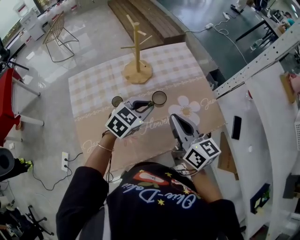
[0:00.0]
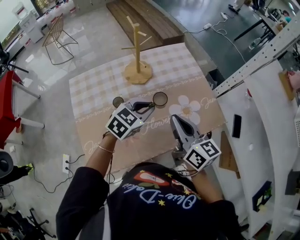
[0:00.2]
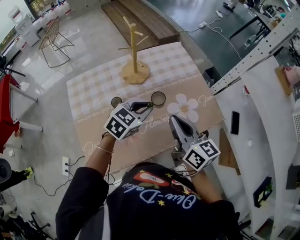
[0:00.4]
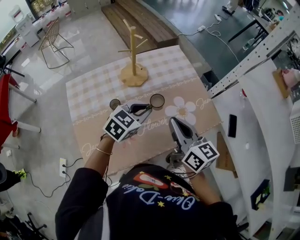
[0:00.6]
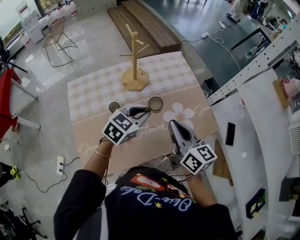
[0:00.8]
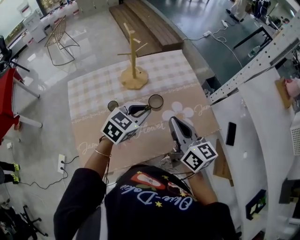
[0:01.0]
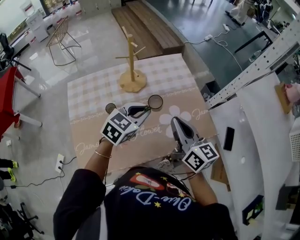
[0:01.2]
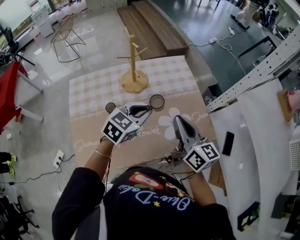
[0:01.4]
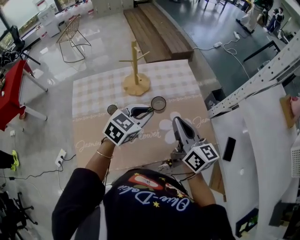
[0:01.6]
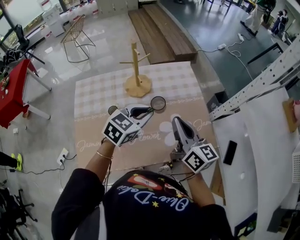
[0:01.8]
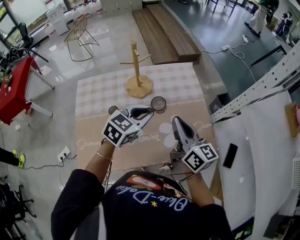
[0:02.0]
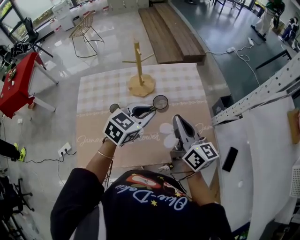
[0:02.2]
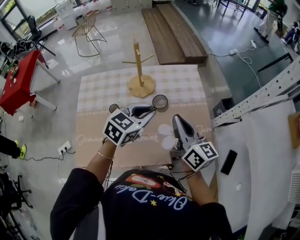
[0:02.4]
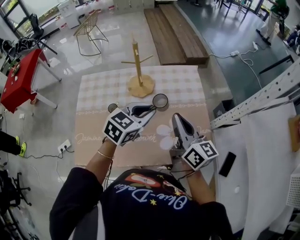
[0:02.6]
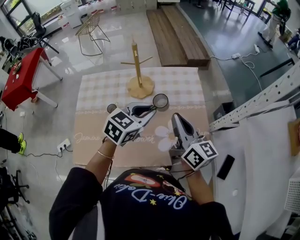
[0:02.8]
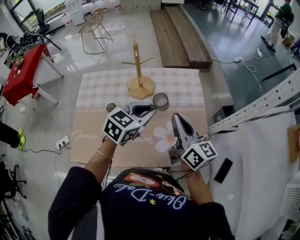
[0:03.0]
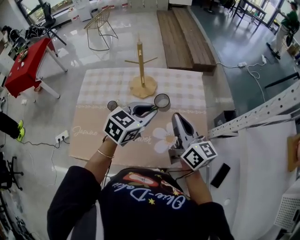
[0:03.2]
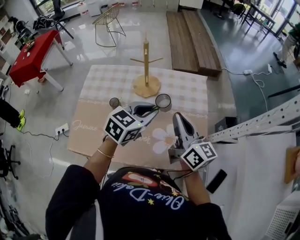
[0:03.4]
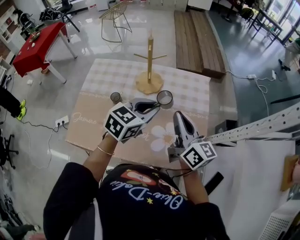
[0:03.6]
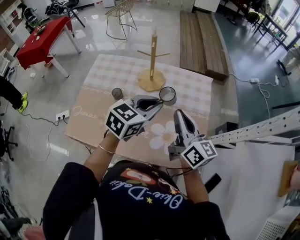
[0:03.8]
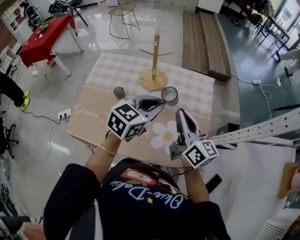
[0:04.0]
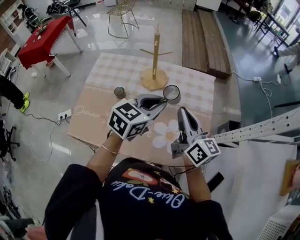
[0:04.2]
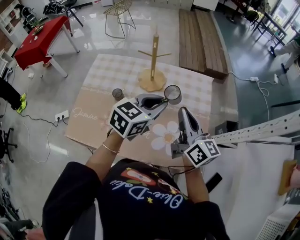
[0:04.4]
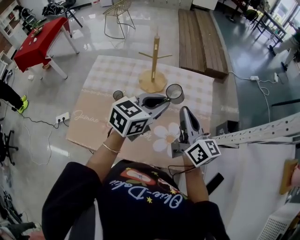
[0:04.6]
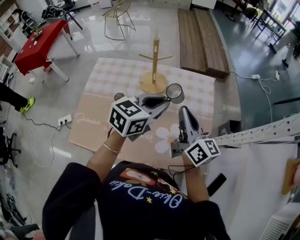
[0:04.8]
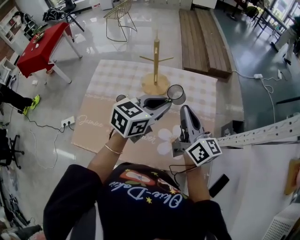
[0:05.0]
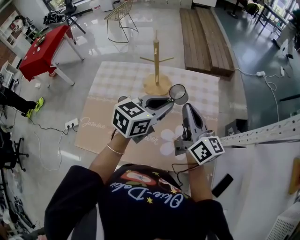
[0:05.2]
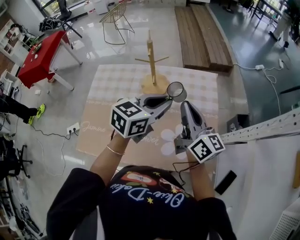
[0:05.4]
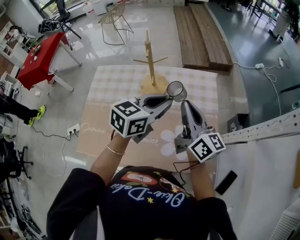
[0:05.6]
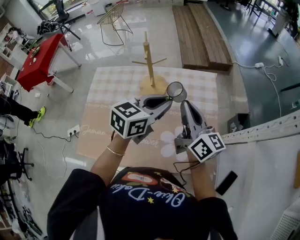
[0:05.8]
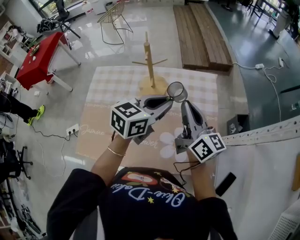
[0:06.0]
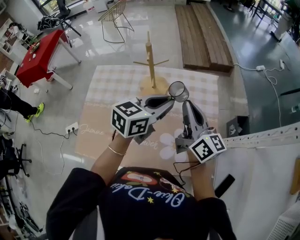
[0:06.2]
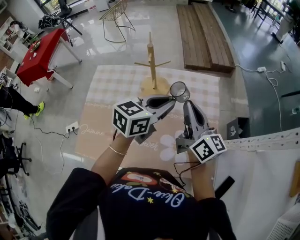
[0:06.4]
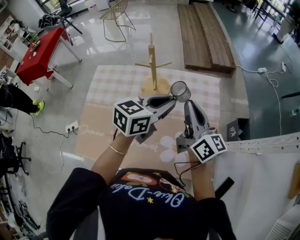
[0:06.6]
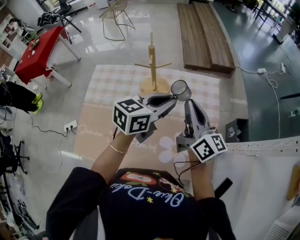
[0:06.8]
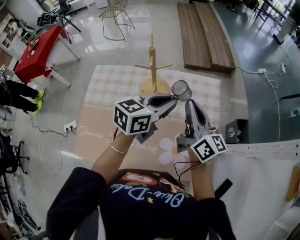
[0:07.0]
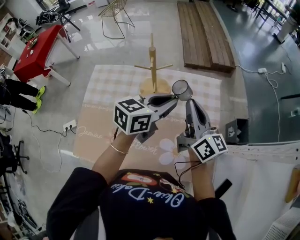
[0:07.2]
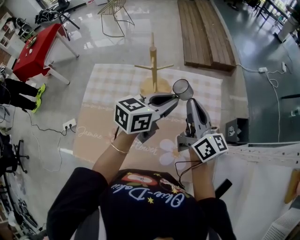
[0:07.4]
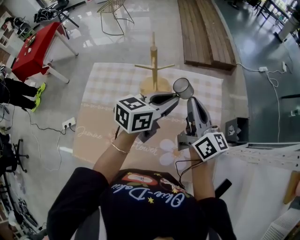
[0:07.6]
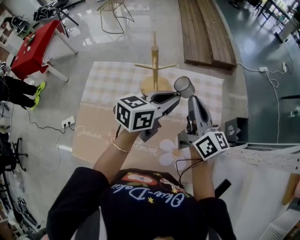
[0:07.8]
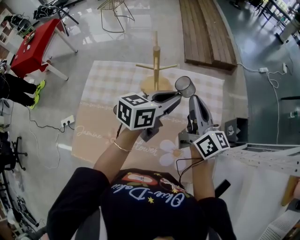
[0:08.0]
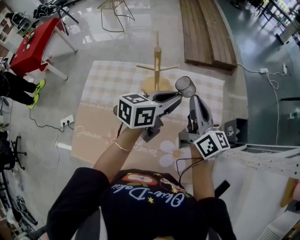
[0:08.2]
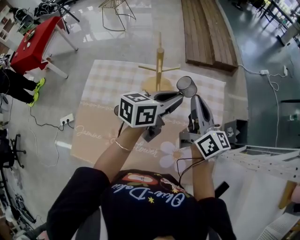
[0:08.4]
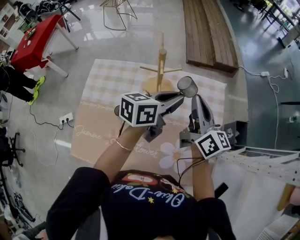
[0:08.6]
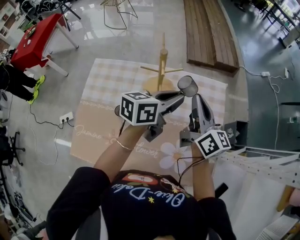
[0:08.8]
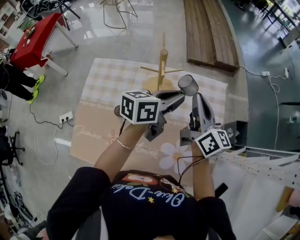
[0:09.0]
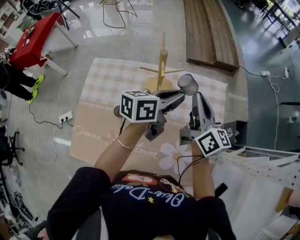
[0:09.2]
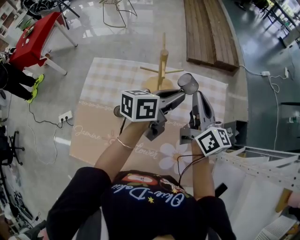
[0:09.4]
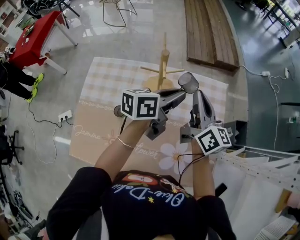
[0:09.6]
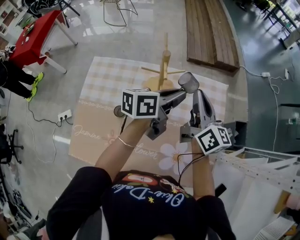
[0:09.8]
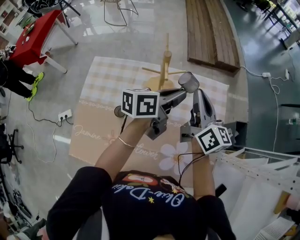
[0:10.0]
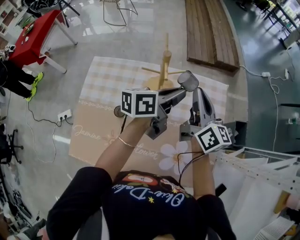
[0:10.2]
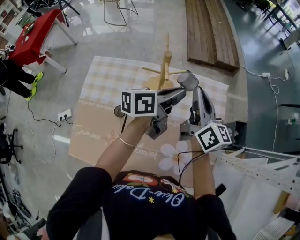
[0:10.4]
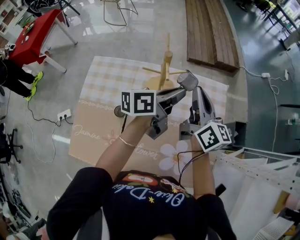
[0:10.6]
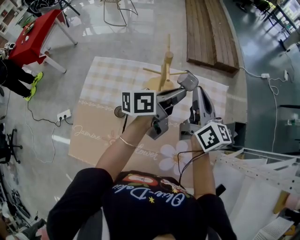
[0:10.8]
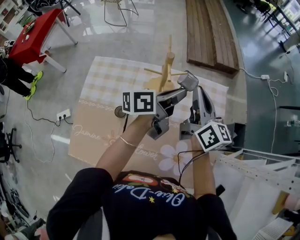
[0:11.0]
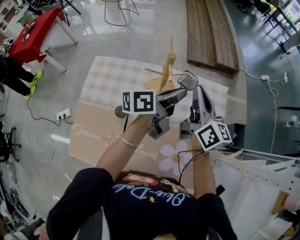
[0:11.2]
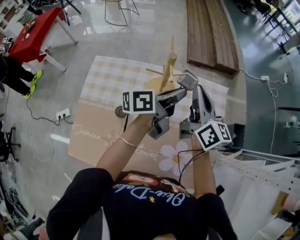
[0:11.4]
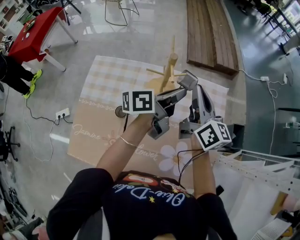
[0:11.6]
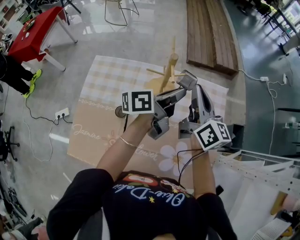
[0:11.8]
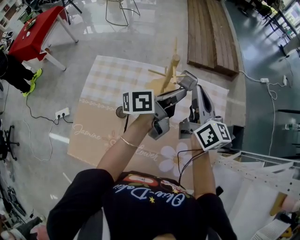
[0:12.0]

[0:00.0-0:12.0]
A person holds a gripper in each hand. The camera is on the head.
0:00.0 to 0:01.6: The left gripper goes roughly 5 cm upward, while the right gripper goes roughly 5 cm to the right and forward.
0:01.6 to 0:03.0: The right gripper goes about 5 cm forward. The left gripper changes place by approximately 5 cm.
0:03.0 to 0:04.4: The grippers make only small movements.
0:04.4 to 0:06.0: The right gripper heads forward, covering roughly 5 cm.
0:06.0 to 0:07.6: The two grippers go roughly 5 cm forward.
0:07.6 to 0:09.0: The grippers make only small movements.
0:09.0 to 0:10.4: The grippers make only small movements.
0:10.4 to 0:12.0: There are only small adjustments of the grippers.

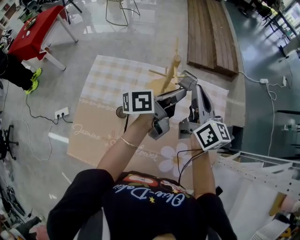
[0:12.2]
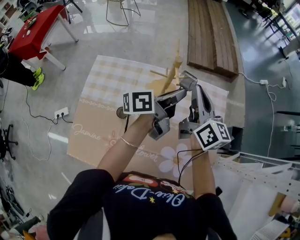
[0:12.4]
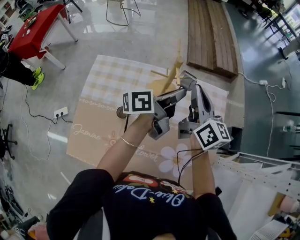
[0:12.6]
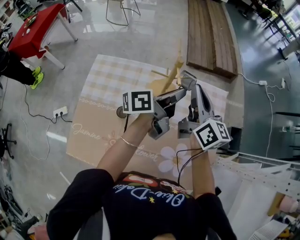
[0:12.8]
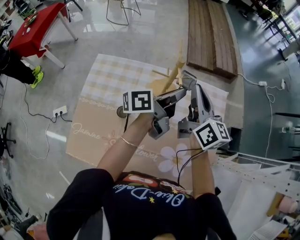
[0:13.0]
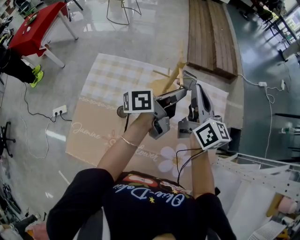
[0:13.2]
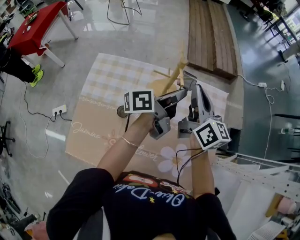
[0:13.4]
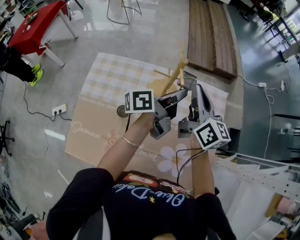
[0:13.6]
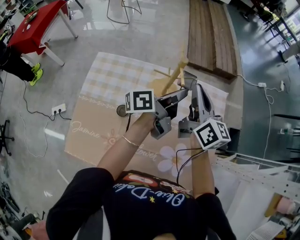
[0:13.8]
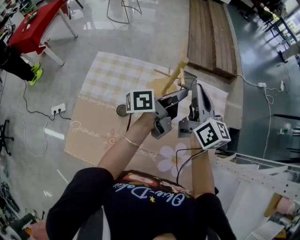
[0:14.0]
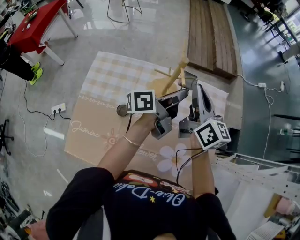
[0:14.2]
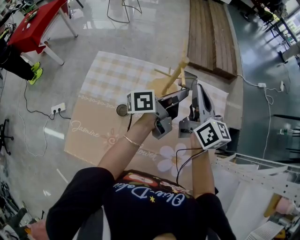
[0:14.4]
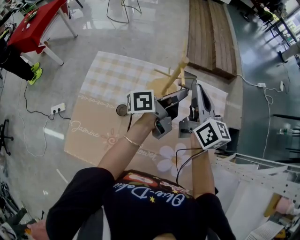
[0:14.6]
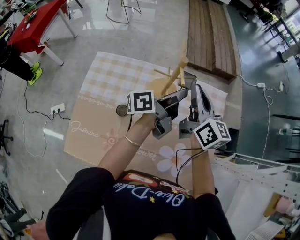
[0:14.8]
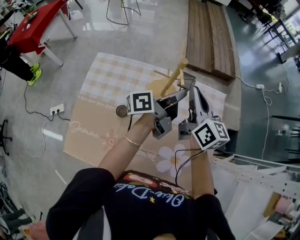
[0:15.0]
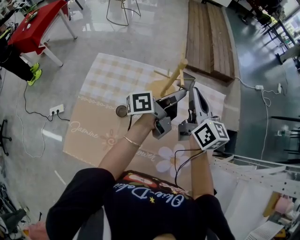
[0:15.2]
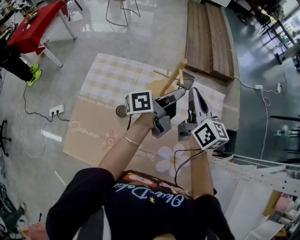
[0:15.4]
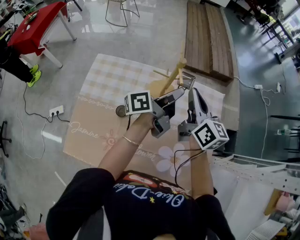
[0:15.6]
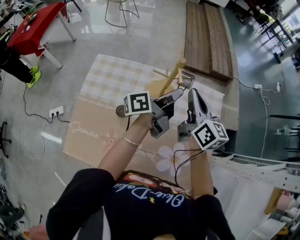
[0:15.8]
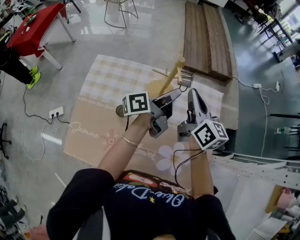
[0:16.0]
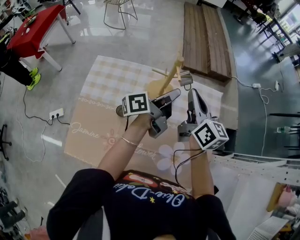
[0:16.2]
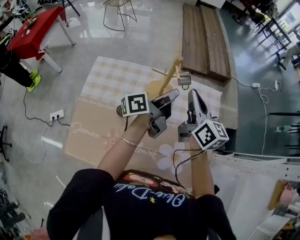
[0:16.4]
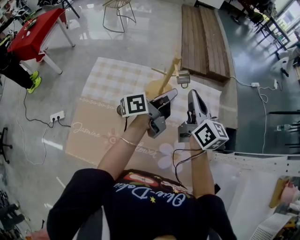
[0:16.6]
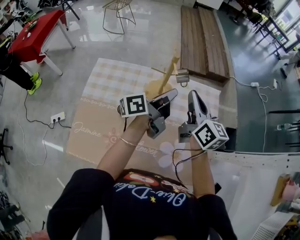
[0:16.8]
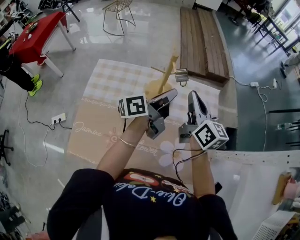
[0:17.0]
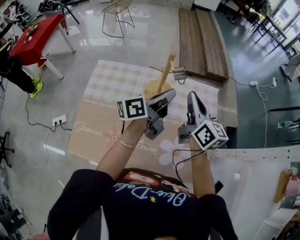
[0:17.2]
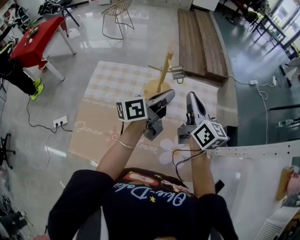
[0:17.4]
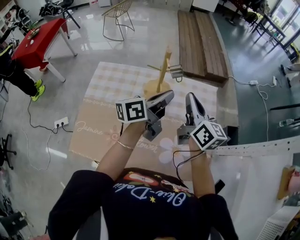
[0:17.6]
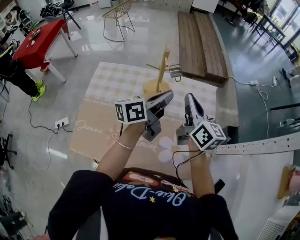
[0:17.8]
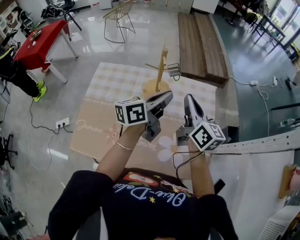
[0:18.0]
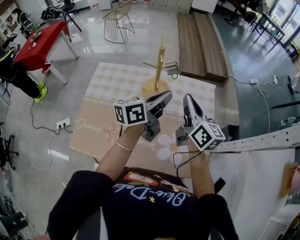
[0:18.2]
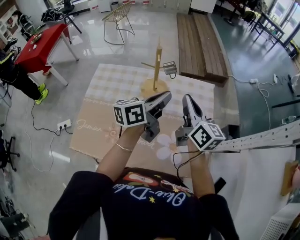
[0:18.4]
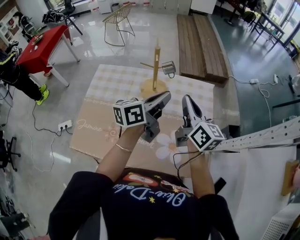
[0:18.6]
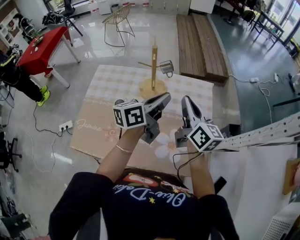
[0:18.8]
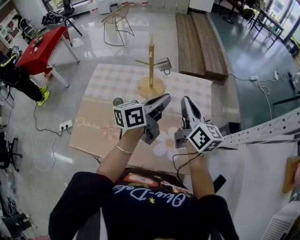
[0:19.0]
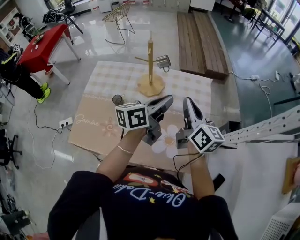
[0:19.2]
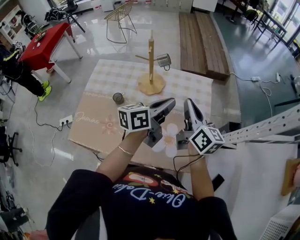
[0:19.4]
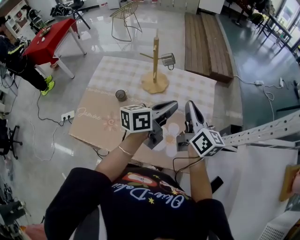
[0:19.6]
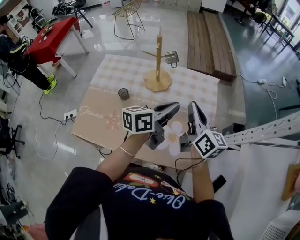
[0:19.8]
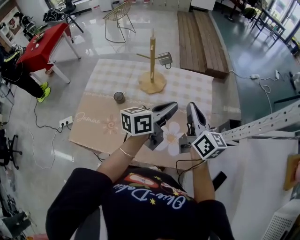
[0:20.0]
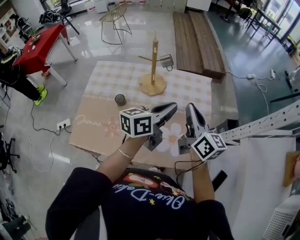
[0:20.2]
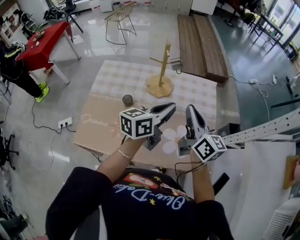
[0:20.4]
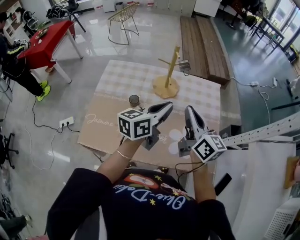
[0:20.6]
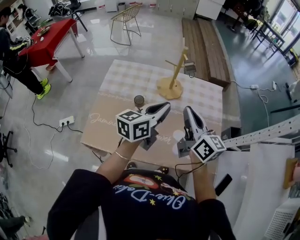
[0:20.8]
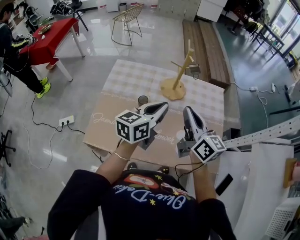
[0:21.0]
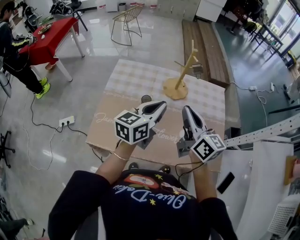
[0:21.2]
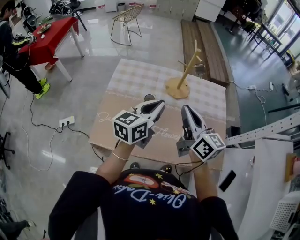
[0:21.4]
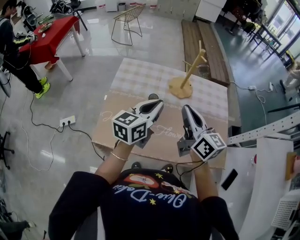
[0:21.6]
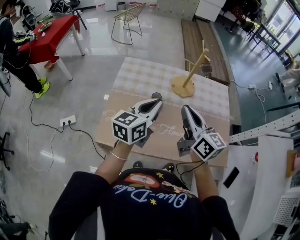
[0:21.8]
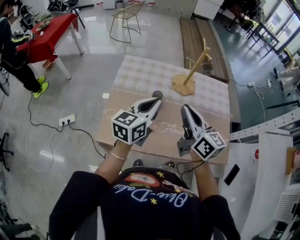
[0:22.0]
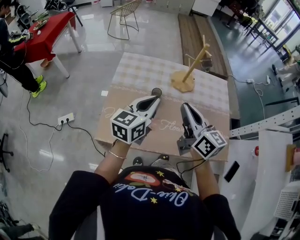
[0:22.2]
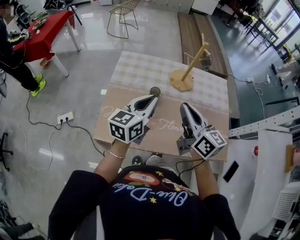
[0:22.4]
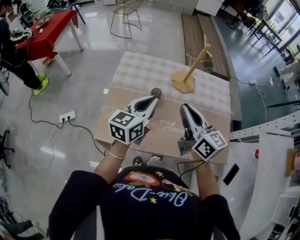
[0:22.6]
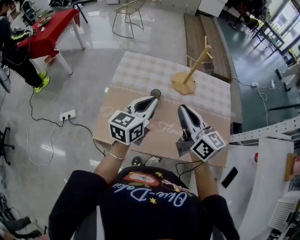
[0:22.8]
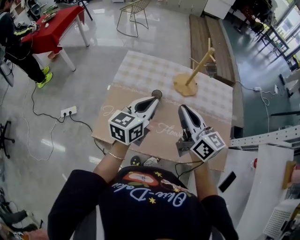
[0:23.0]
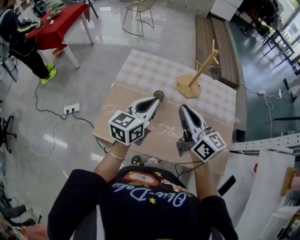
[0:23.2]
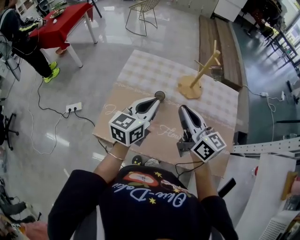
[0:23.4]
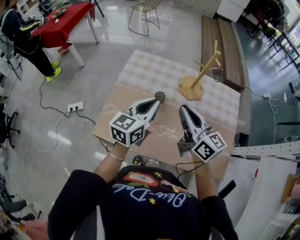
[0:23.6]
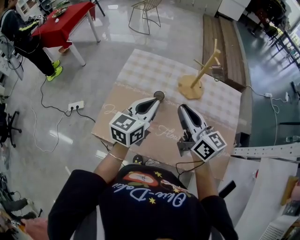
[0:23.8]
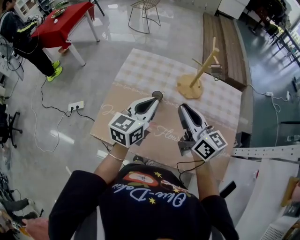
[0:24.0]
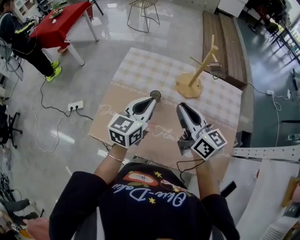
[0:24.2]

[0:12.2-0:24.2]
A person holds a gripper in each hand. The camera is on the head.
0:12.2 to 0:16.6: The grippers move only a little.
0:16.6 to 0:18.2: The two grippers go some 5 cm backward. The left gripper changes its angle by about 30 degrees.
0:18.2 to 0:19.8: Both grippers travel together to the right and backward, approximately 10 cm.
0:19.8 to 0:21.2: The left gripper moves to the left, roughly 15 cm, and turns by some 20 degrees, while the right gripper moves to the left and backward, roughly 15 cm.
0:21.2 to 0:22.6: The grippers both shift to the left by roughly 10 cm.
0:22.6 to 0:24.2: The right gripper moves forward, some 5 cm; the left gripper ends up approximately 5 cm from where it was.
